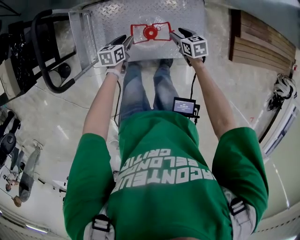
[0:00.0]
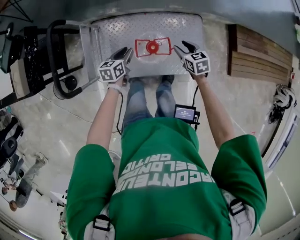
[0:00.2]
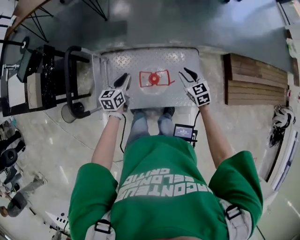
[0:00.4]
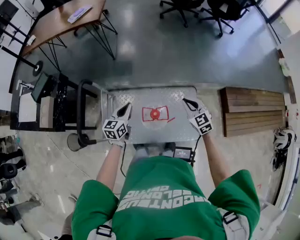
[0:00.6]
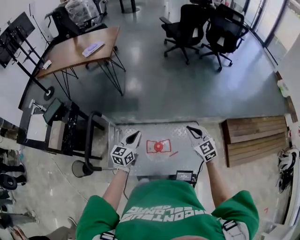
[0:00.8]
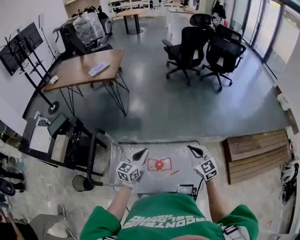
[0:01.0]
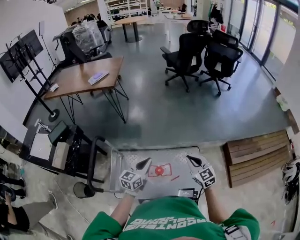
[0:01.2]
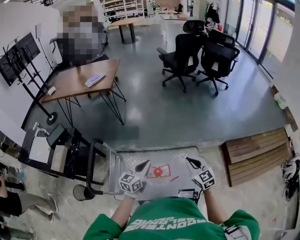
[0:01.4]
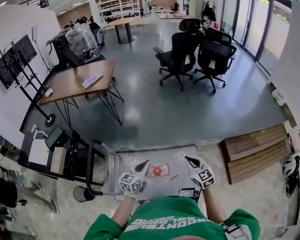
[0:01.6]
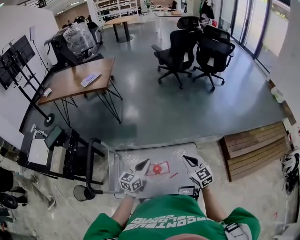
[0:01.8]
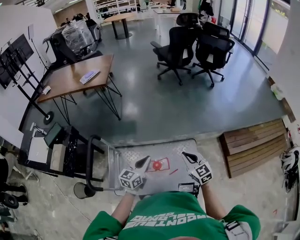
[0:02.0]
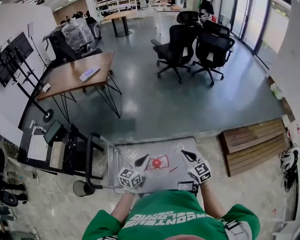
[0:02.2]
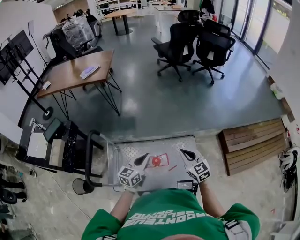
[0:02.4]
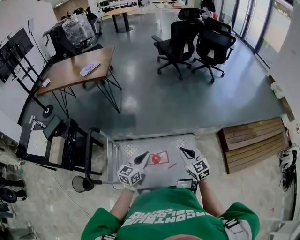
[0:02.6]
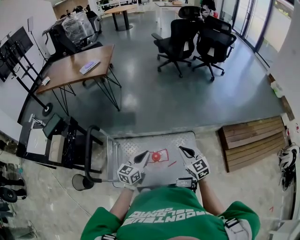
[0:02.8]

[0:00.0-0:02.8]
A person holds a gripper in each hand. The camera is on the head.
0:00.0 to 0:01.4: Both grippers move upward, about 35 cm. The left gripper angles its fingers upward, by roughly 40 degrees, and closes; the right gripper tilts its fingers approximately 40 degrees upward, and closes.
0:01.4 to 0:02.8: There are only small adjustments of the grippers.

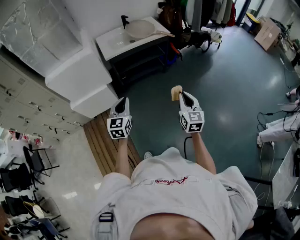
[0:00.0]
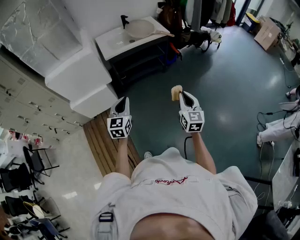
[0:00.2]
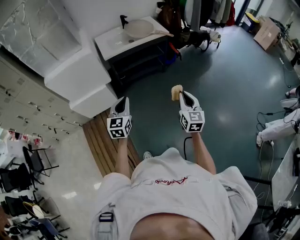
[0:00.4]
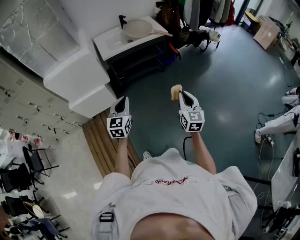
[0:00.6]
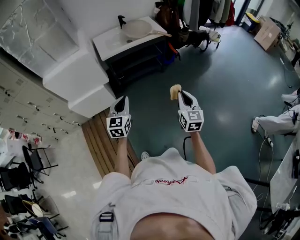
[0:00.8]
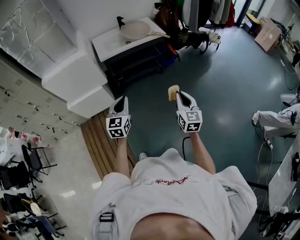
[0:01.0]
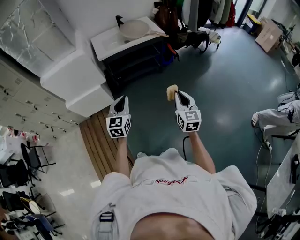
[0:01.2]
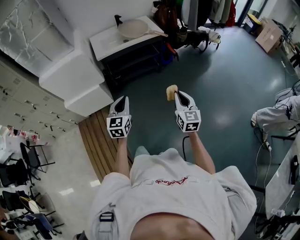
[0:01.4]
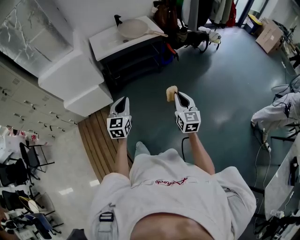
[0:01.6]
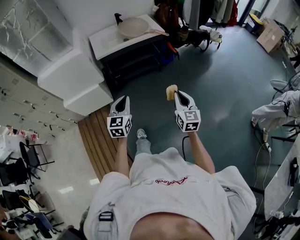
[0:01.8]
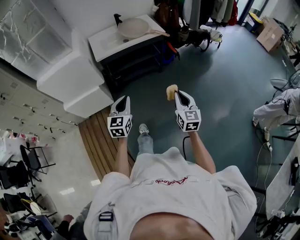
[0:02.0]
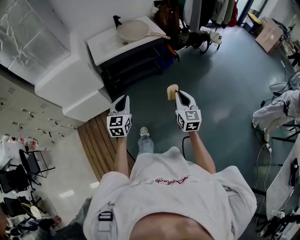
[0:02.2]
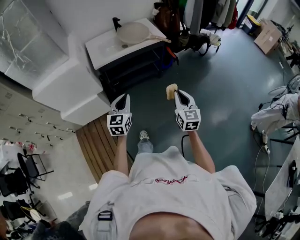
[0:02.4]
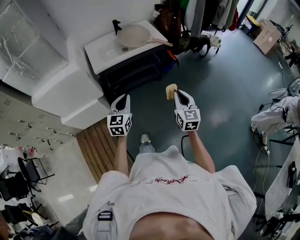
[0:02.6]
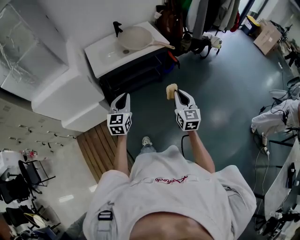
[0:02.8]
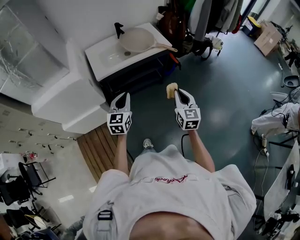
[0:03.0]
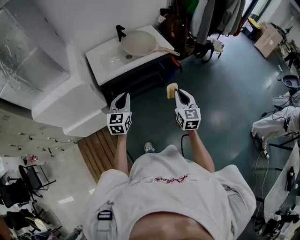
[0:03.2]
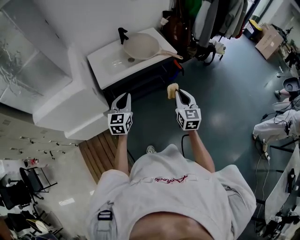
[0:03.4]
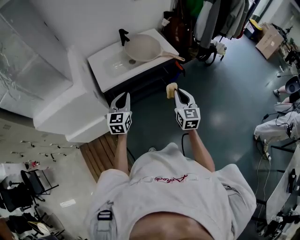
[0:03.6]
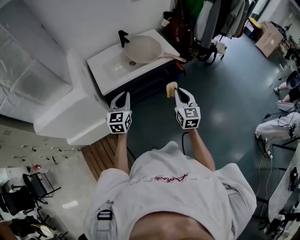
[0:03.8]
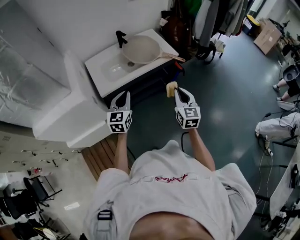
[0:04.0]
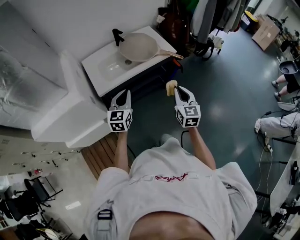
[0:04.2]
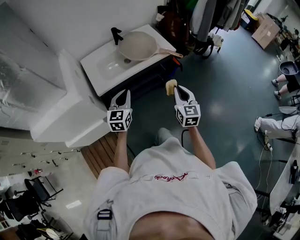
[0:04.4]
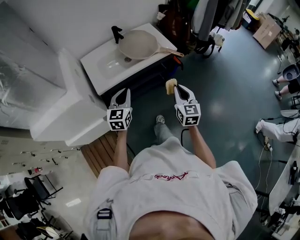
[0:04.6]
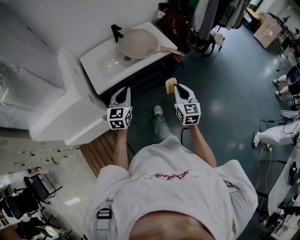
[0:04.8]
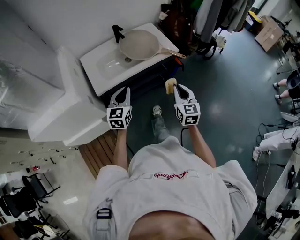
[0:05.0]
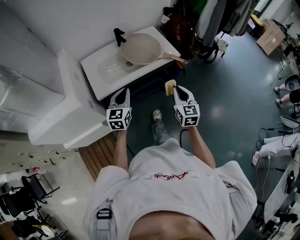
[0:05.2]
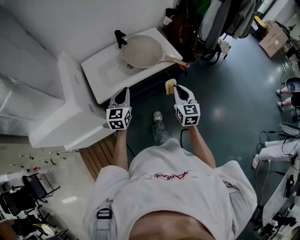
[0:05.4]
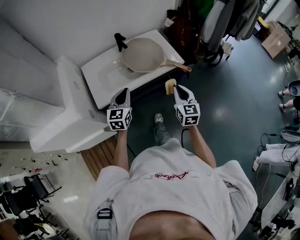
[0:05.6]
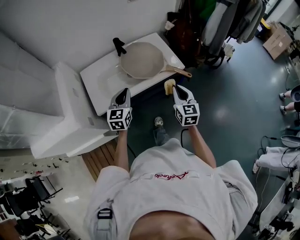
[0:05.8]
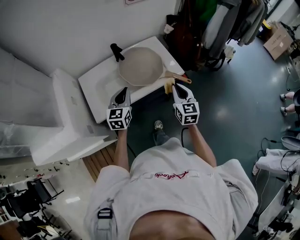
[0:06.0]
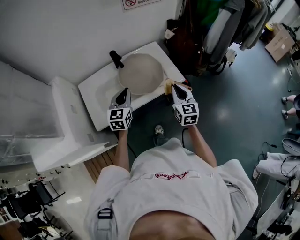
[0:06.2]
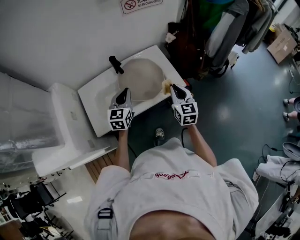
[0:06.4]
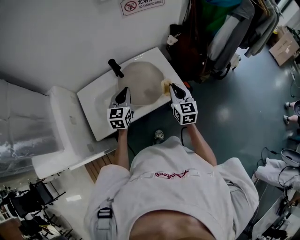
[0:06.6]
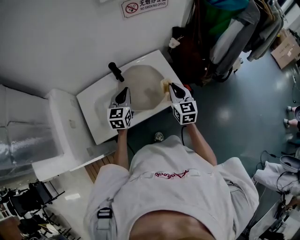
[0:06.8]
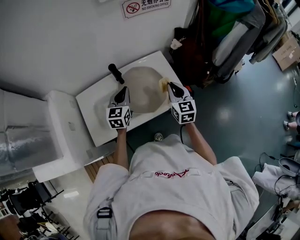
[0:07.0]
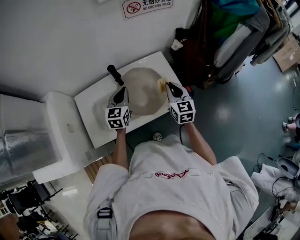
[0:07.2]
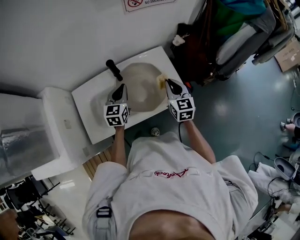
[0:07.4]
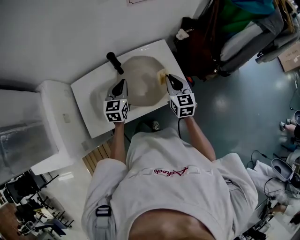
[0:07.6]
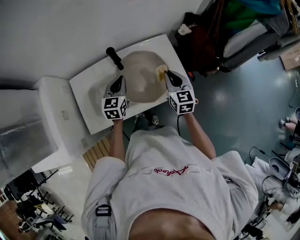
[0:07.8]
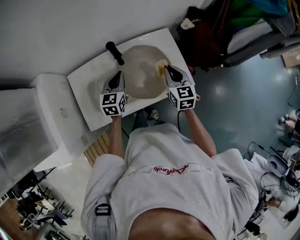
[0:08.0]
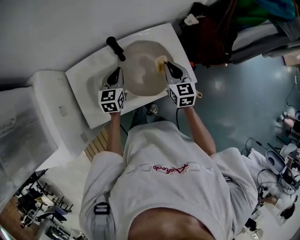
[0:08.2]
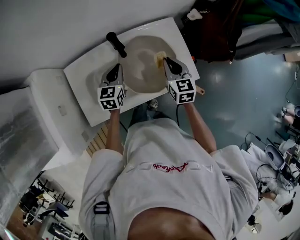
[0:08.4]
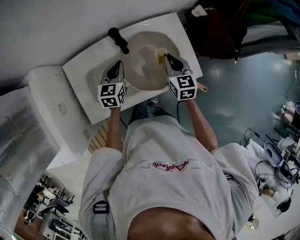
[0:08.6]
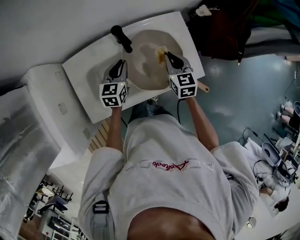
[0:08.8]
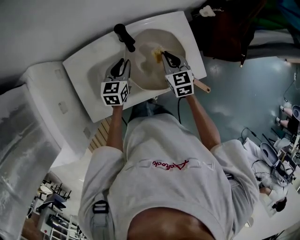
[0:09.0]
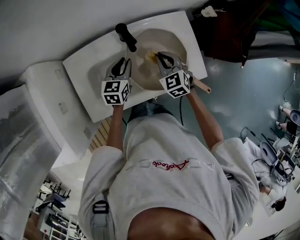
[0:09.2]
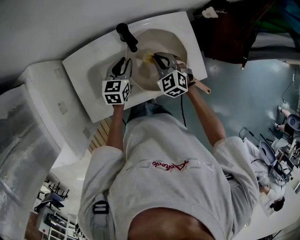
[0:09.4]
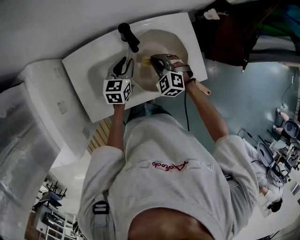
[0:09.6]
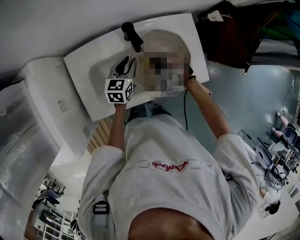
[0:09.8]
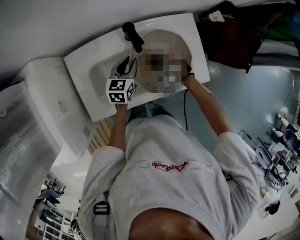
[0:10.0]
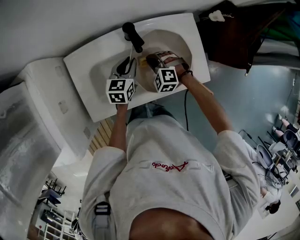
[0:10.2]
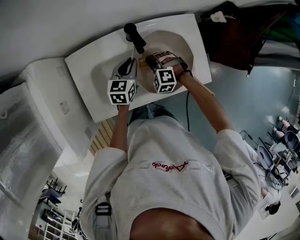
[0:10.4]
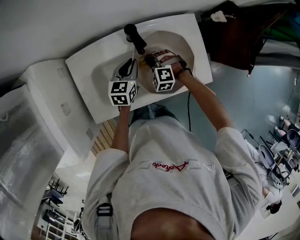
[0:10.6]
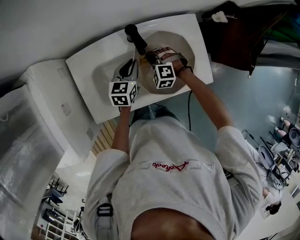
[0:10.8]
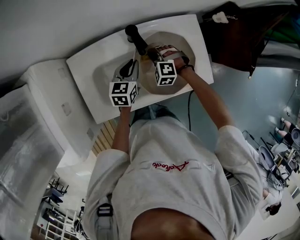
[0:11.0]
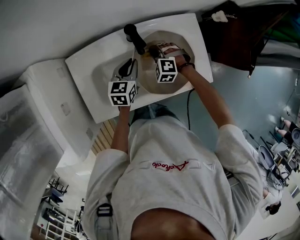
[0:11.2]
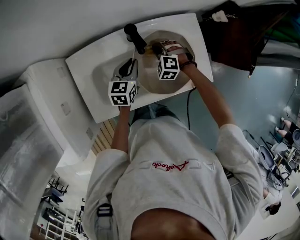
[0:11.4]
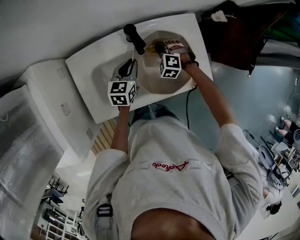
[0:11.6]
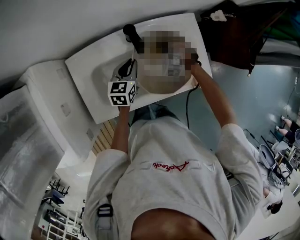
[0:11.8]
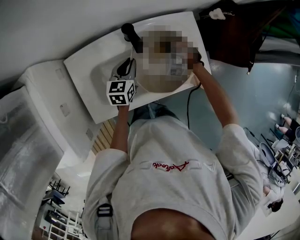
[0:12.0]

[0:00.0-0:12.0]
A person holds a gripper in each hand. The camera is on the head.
0:00.0 to 0:01.6: The two grippers go some 10 cm to the right.
0:01.6 to 0:03.0: The grippers both shift forward by some 25 cm.
0:03.0 to 0:04.4: The right gripper moves forward and to the left, some 15 cm, while the left gripper goes some 15 cm forward.
0:04.4 to 0:06.0: Both grippers travel together forward, approximately 25 cm.
0:06.0 to 0:07.6: The two grippers go roughly 20 cm forward.
0:07.6 to 0:09.0: The left gripper shifts approximately 10 cm downward and to the left, and opens up. Meanwhile the right gripper is displaced to the left, downward and forward by some 15 cm.
0:09.0 to 0:10.4: The right gripper shifts about 15 cm downward and to the left, and rotates around the line of its fingers by approximately 60 degrees, counterclockwise from behind.
0:10.4 to 0:12.0: The right gripper moves to the right and forward, some 10 cm.

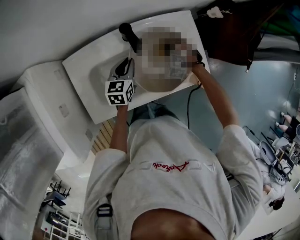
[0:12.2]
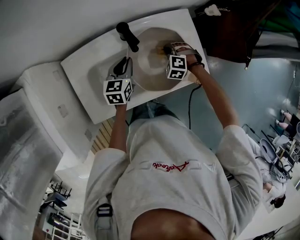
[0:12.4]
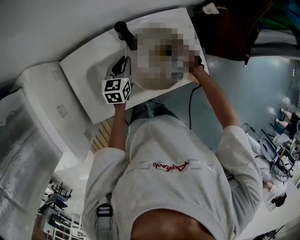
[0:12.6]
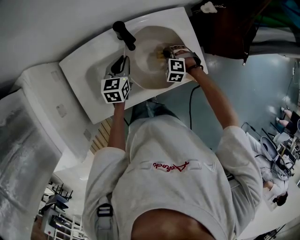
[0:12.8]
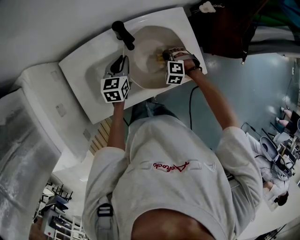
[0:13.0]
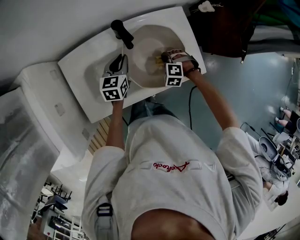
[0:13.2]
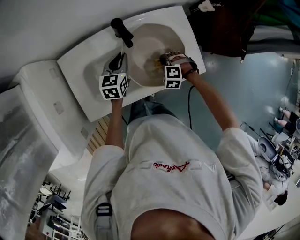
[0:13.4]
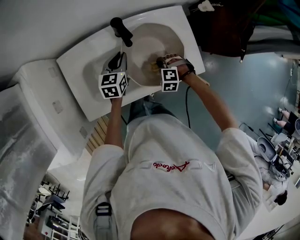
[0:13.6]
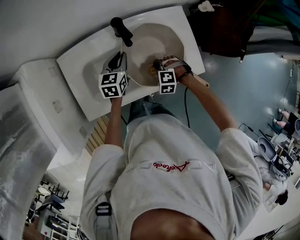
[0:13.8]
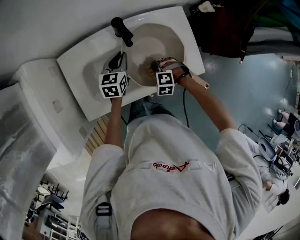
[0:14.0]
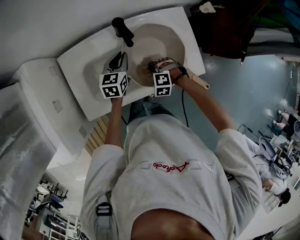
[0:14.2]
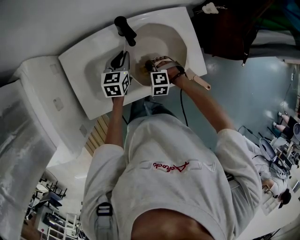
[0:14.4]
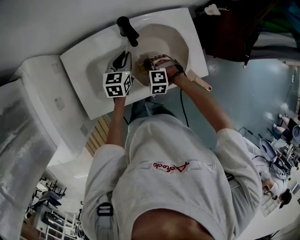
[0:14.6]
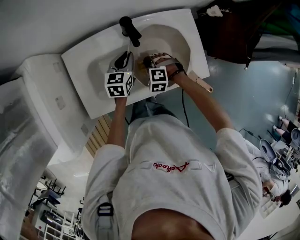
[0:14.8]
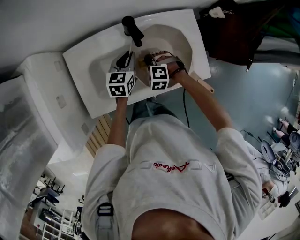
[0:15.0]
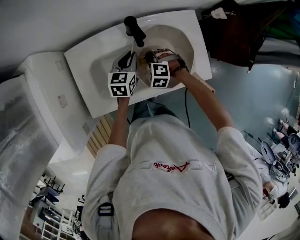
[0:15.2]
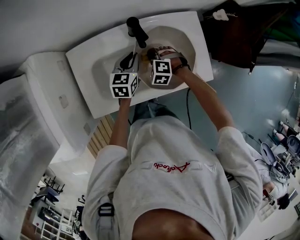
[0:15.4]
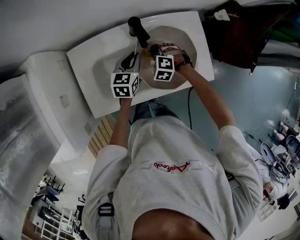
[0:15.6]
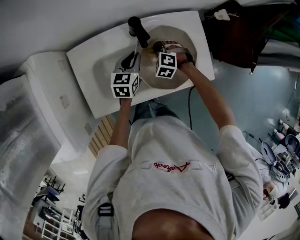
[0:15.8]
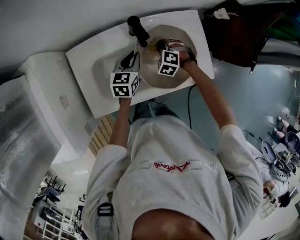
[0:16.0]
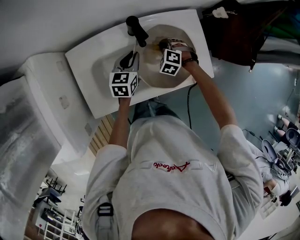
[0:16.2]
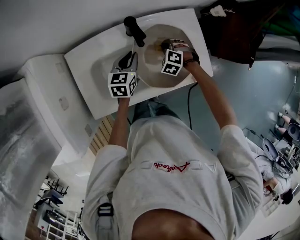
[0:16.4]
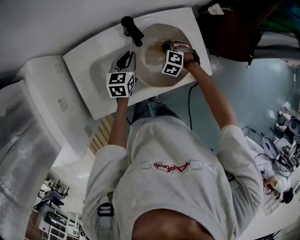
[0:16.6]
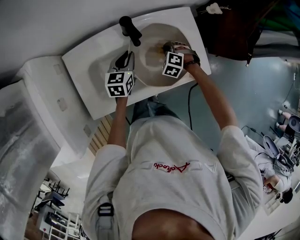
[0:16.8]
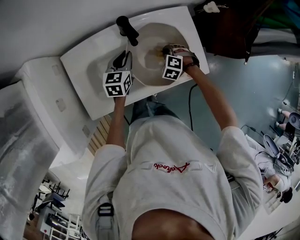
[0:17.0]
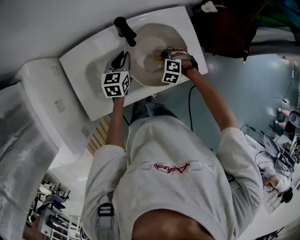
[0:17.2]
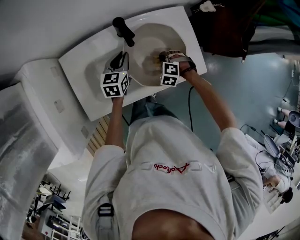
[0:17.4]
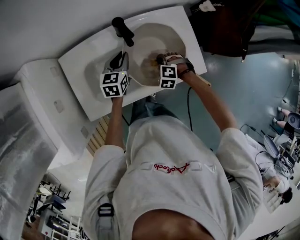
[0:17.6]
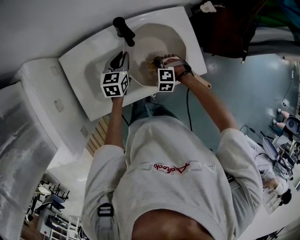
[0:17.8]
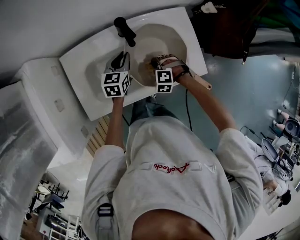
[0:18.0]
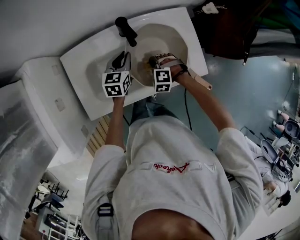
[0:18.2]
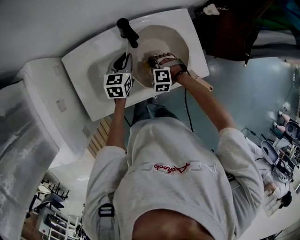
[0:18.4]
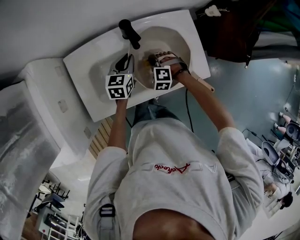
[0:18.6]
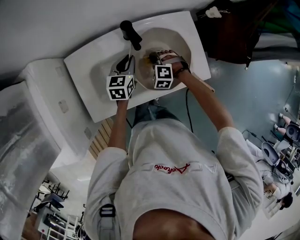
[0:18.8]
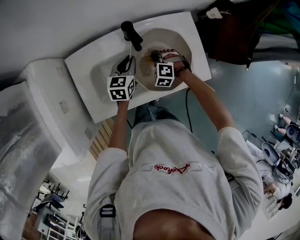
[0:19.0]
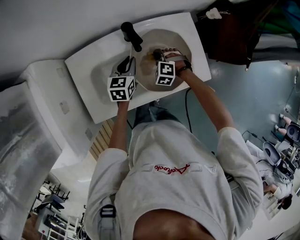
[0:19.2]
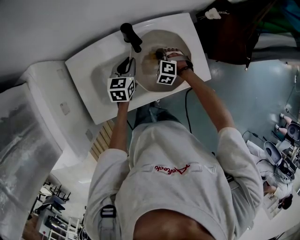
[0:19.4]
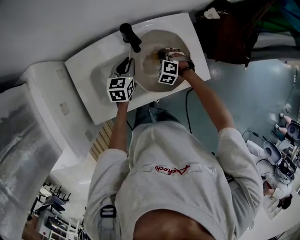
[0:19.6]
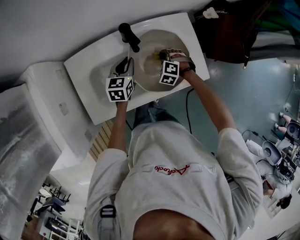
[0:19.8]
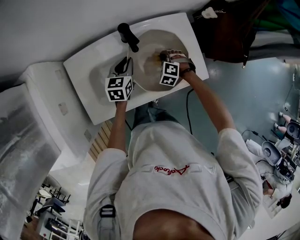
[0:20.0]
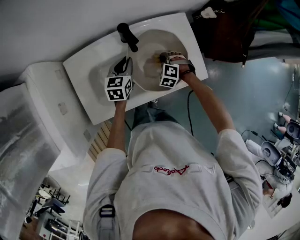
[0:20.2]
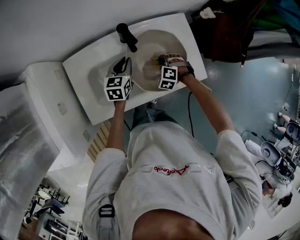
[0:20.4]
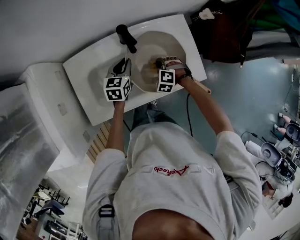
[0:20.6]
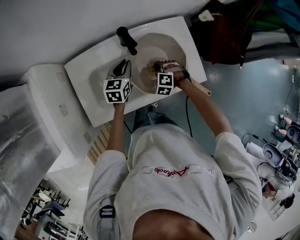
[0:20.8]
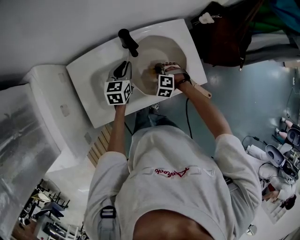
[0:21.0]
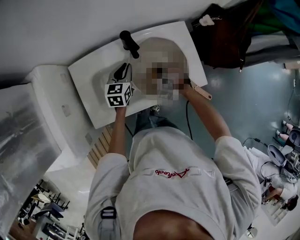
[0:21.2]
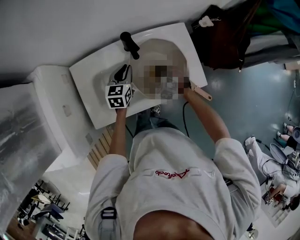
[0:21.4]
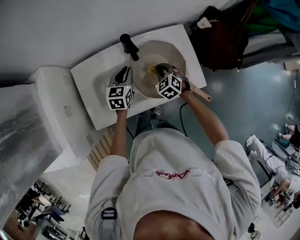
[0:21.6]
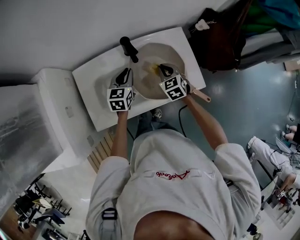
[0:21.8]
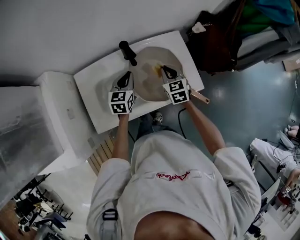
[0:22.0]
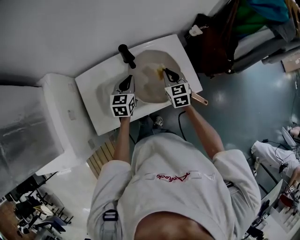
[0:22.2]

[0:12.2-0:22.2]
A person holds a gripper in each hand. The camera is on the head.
0:12.2 to 0:13.6: The right gripper moves backward, roughly 10 cm.
0:13.6 to 0:15.0: The right gripper goes some 10 cm to the left.
0:15.0 to 0:16.4: The right gripper goes roughly 10 cm forward and to the right.
0:16.4 to 0:18.0: The right gripper travels backward by approximately 10 cm.
0:18.0 to 0:19.4: The right gripper shifts some 10 cm forward.
0:19.4 to 0:20.8: The right gripper ends up roughly 5 cm from where it was.
0:20.8 to 0:22.2: The right gripper shifts approximately 15 cm upward, and twists some 60 degrees clockwise, seen from behind; the left gripper shifts approximately 5 cm upward.
